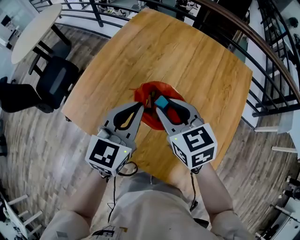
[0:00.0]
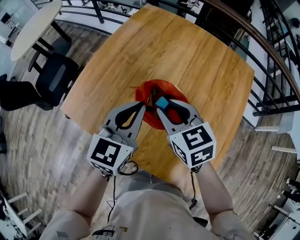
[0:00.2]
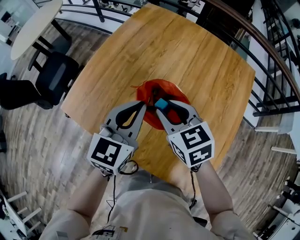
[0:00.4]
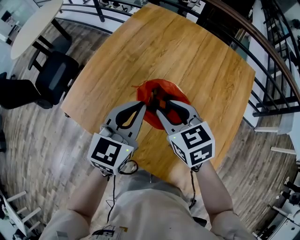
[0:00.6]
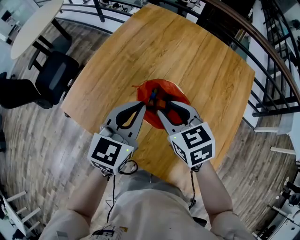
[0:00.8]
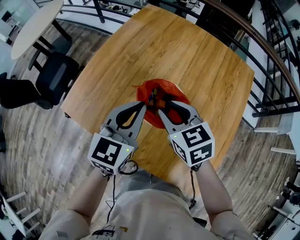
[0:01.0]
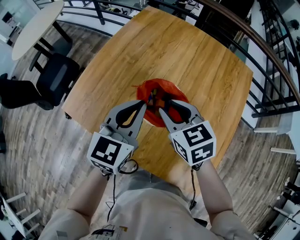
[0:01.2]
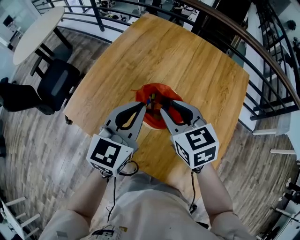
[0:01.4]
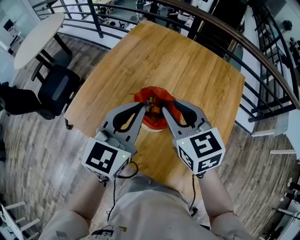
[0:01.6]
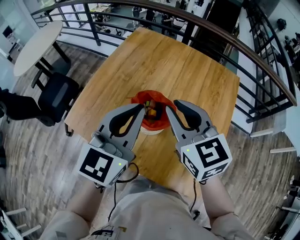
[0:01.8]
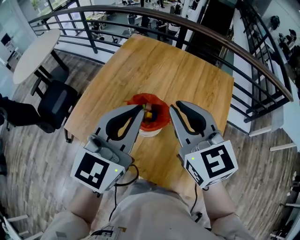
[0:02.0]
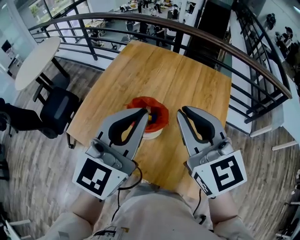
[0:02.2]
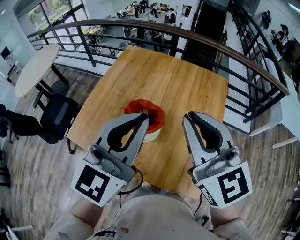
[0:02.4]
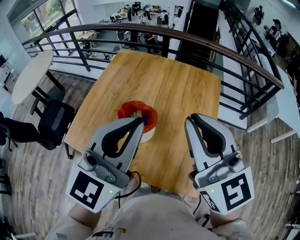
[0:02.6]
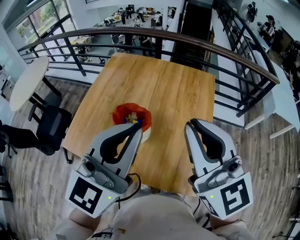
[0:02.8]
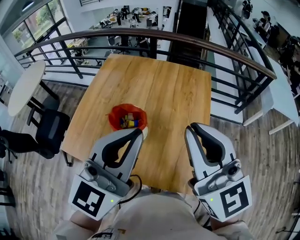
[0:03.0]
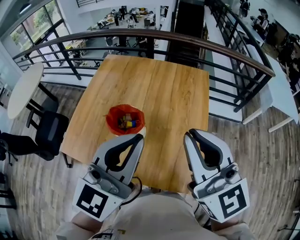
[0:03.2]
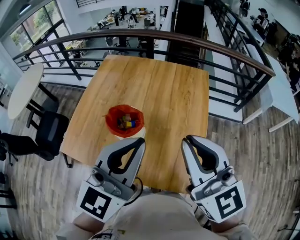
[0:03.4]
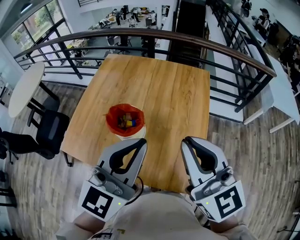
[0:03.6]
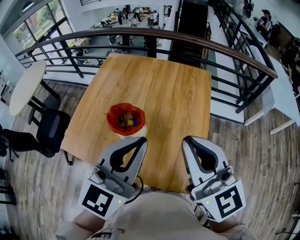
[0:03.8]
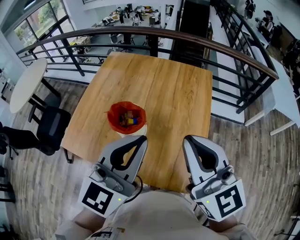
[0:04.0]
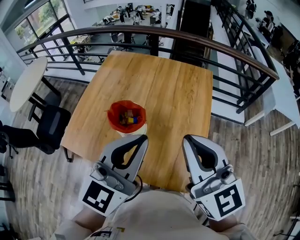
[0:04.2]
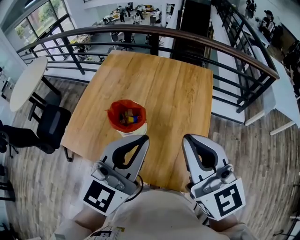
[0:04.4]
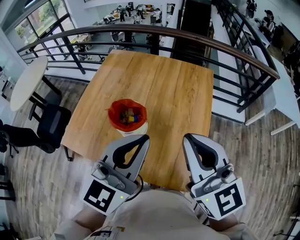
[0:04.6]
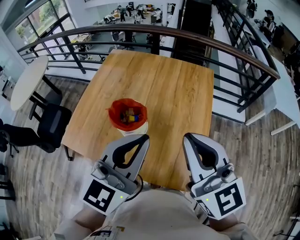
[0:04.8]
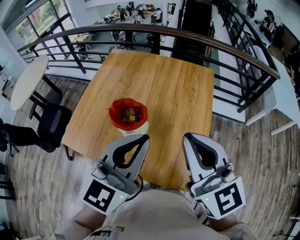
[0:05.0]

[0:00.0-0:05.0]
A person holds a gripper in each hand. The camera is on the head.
0:00.0 to 0:01.6: The grippers both shift upward by some 5 cm.
0:01.6 to 0:03.4: Both grippers travel together to the right, backward and upward, roughly 25 cm. The right gripper turns by about 30 degrees, and closes its fingers, while the left gripper changes its angle by roughly 20 degrees.
0:03.4 to 0:05.0: The grippers make only small movements.

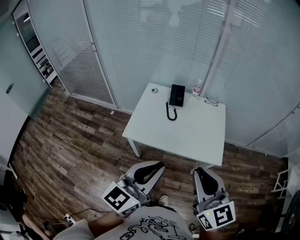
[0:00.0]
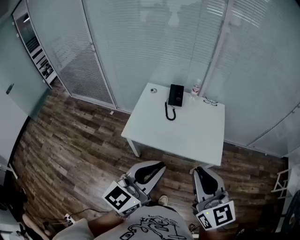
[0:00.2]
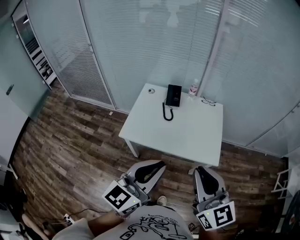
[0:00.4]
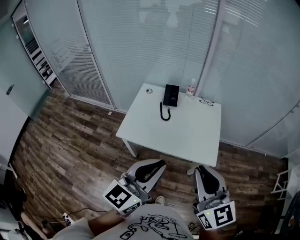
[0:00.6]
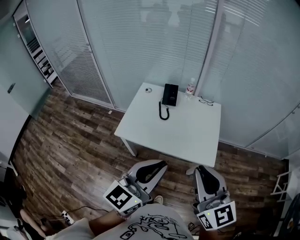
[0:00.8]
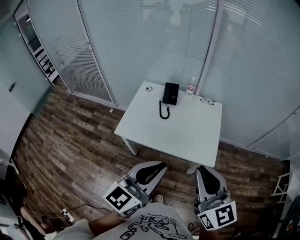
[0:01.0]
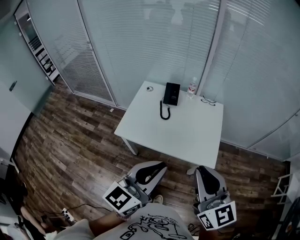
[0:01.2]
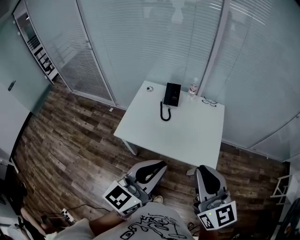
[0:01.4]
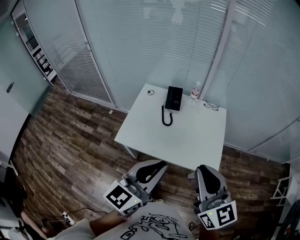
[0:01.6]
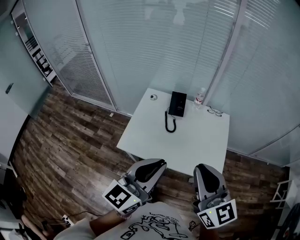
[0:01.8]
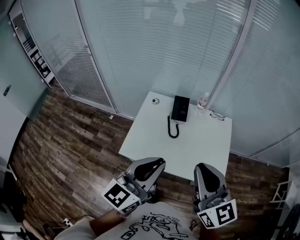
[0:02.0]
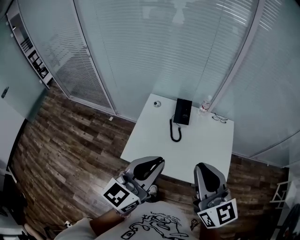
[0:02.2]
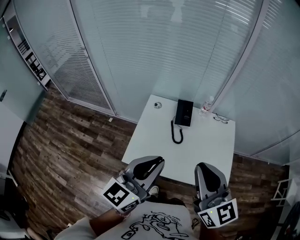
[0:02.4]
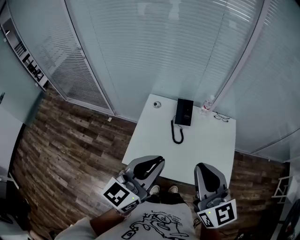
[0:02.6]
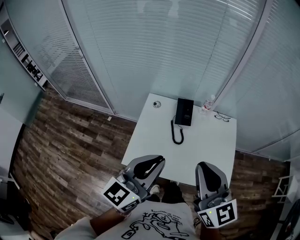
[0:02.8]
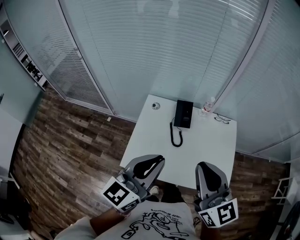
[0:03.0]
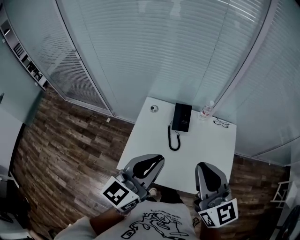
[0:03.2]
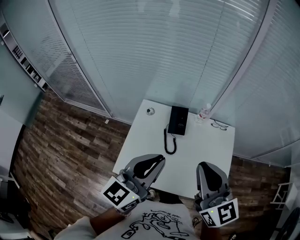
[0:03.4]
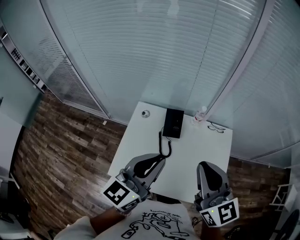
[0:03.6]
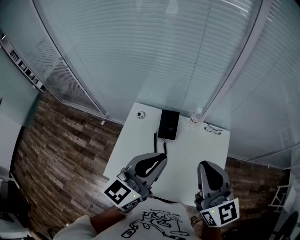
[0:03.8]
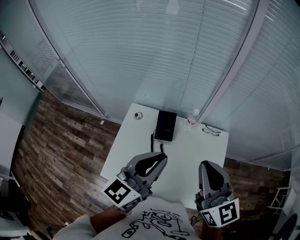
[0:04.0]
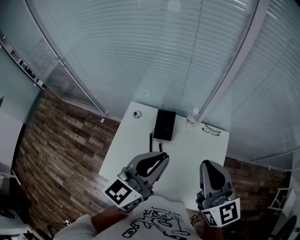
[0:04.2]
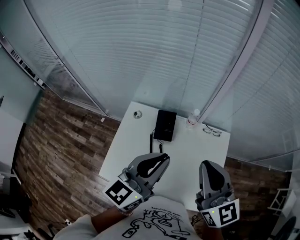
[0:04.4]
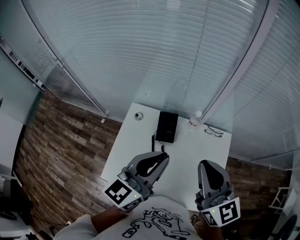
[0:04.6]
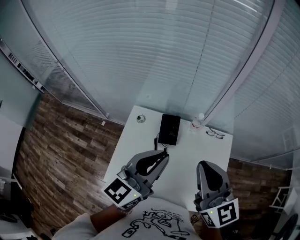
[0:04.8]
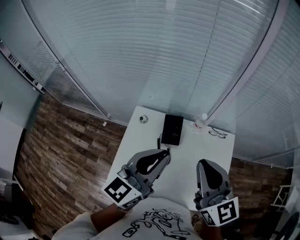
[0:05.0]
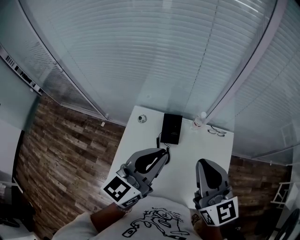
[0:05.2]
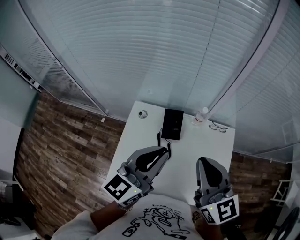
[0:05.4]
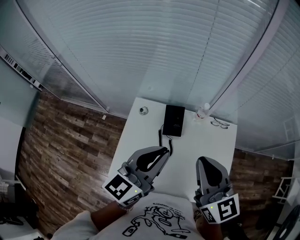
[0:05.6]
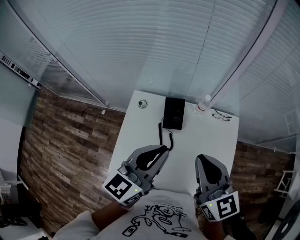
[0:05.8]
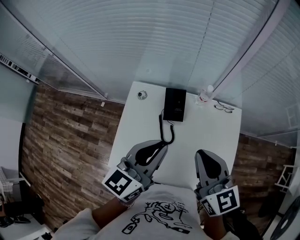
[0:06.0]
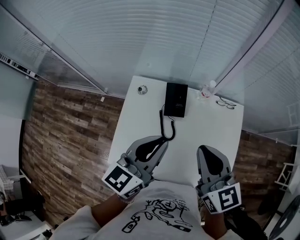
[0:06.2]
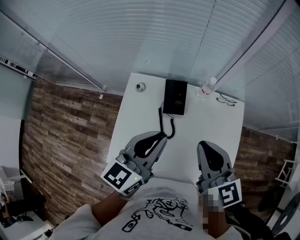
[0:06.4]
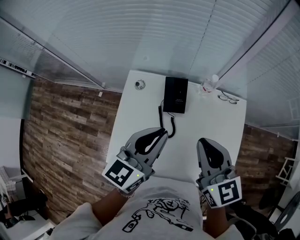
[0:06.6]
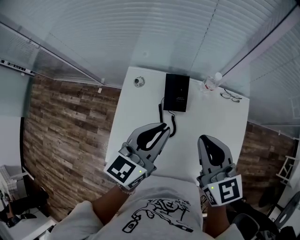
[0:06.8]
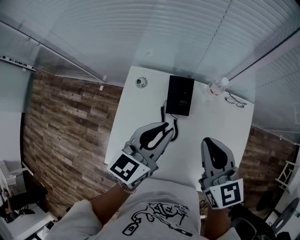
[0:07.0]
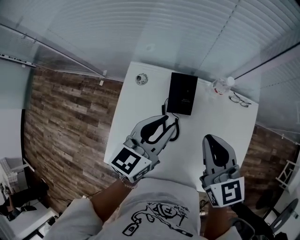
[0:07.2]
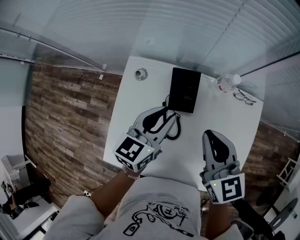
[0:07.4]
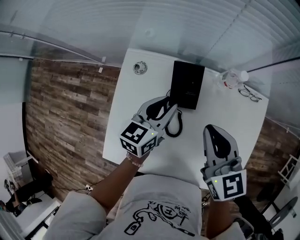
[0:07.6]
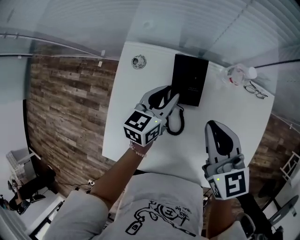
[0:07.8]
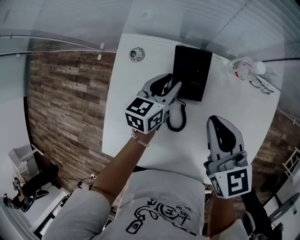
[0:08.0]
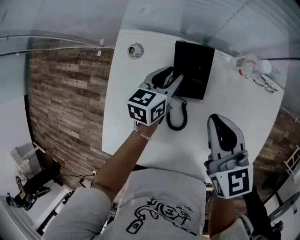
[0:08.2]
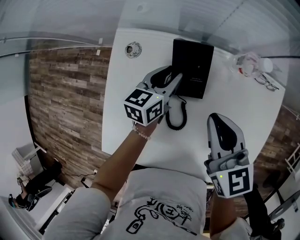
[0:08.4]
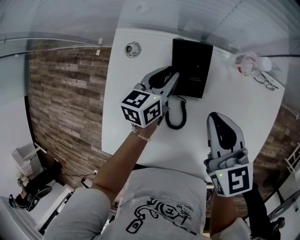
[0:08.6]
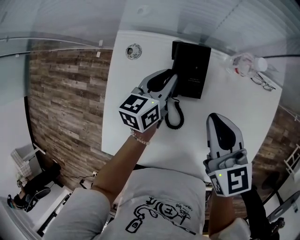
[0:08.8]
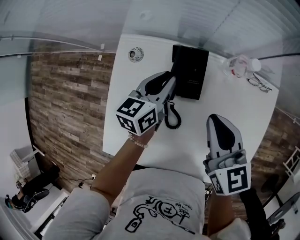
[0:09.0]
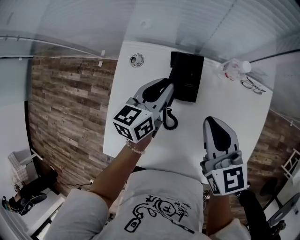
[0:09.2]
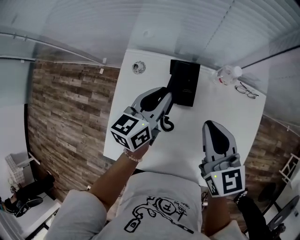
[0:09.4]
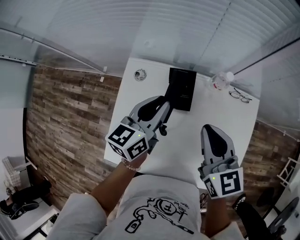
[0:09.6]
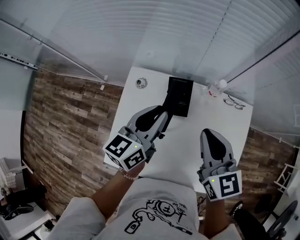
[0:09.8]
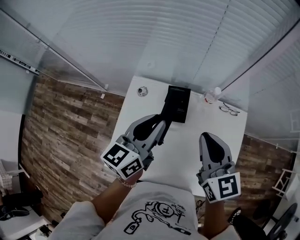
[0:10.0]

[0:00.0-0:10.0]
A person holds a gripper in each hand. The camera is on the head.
0:00.0 to 0:01.4: Both grippers move to the right and forward, about 10 cm.
0:01.4 to 0:02.8: The two grippers go approximately 25 cm forward and to the left.
0:02.8 to 0:04.2: The two grippers go approximately 25 cm forward and to the right.
0:04.2 to 0:05.8: The right gripper heads to the left and downward, covering about 10 cm; the left gripper is displaced to the left by roughly 5 cm.
0:05.8 to 0:07.2: The grippers both shift downward and forward by roughly 20 cm.
0:07.2 to 0:08.6: The right gripper travels downward by roughly 15 cm, while the left gripper goes about 25 cm downward and forward.
0:08.6 to 0:10.0: The left gripper moves upward and backward, some 30 cm, and swivels approximately 20 degrees. The right gripper is displaced upward by roughly 20 cm.

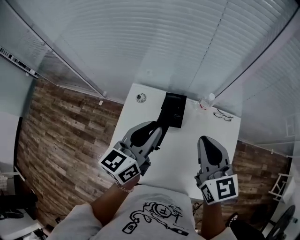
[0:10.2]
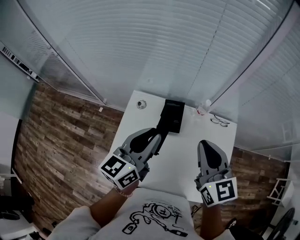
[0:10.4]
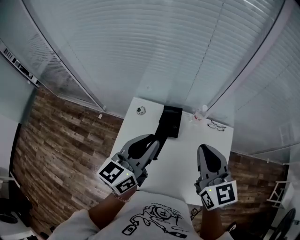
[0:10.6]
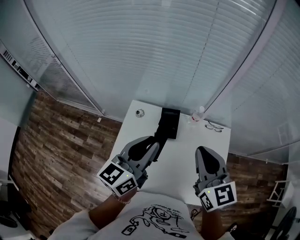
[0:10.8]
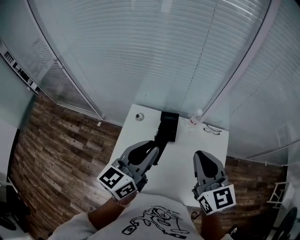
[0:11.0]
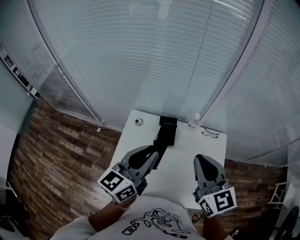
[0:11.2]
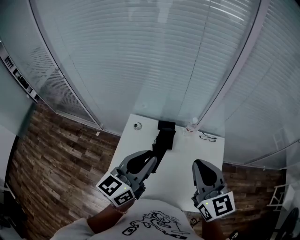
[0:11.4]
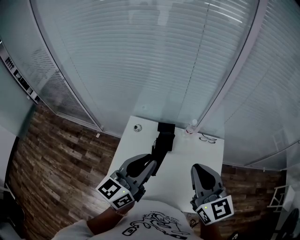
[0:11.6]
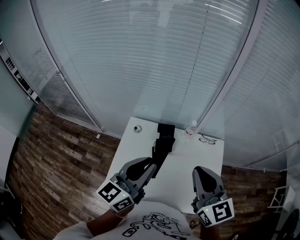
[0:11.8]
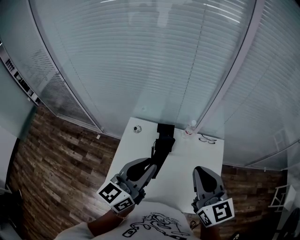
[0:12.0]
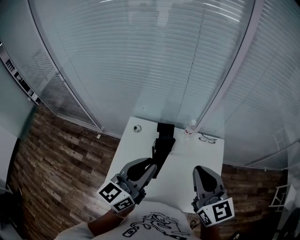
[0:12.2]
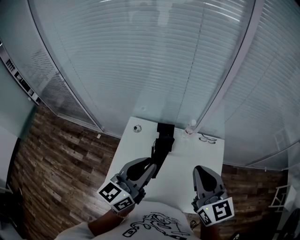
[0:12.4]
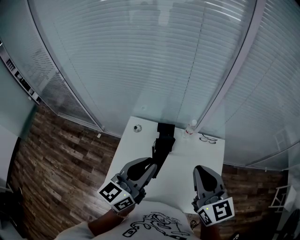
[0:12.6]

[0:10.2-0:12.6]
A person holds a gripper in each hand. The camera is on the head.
0:10.2 to 0:11.4: The grippers both shift upward and backward by roughly 15 cm.
0:11.4 to 0:12.6: The grippers stay close to where they were, moving slightly.

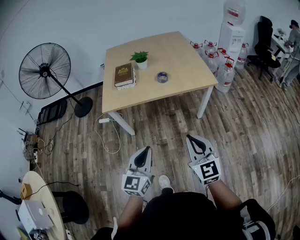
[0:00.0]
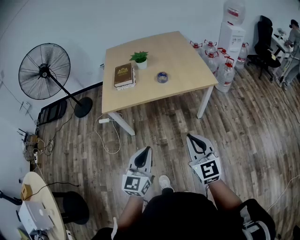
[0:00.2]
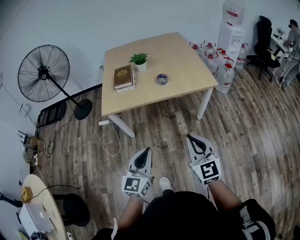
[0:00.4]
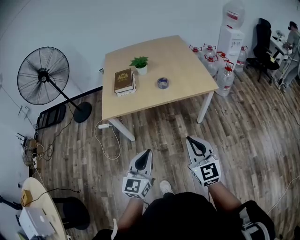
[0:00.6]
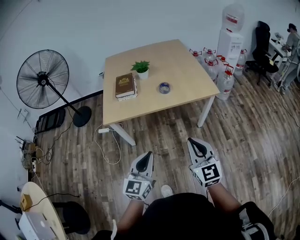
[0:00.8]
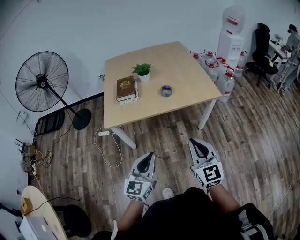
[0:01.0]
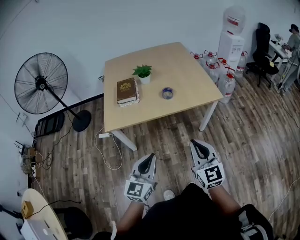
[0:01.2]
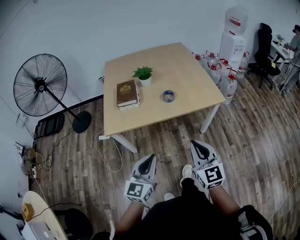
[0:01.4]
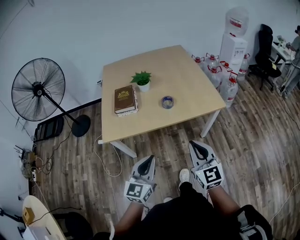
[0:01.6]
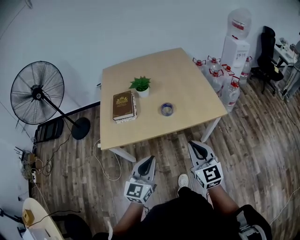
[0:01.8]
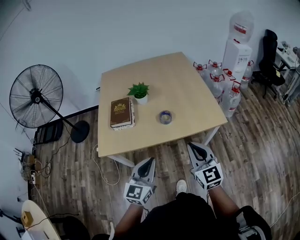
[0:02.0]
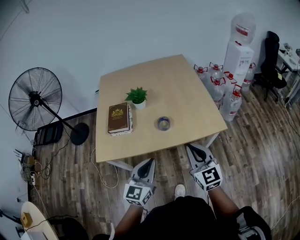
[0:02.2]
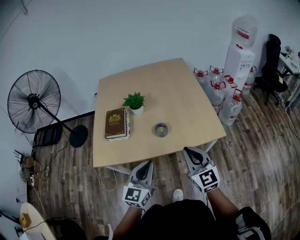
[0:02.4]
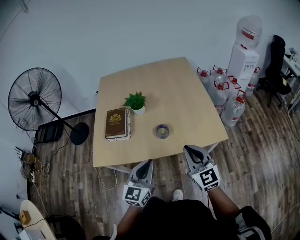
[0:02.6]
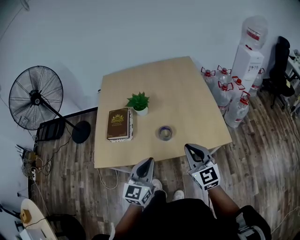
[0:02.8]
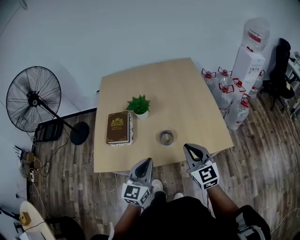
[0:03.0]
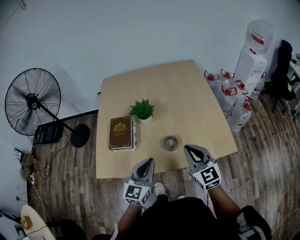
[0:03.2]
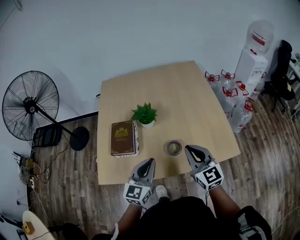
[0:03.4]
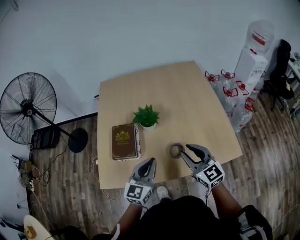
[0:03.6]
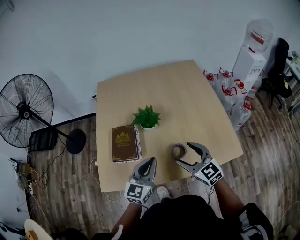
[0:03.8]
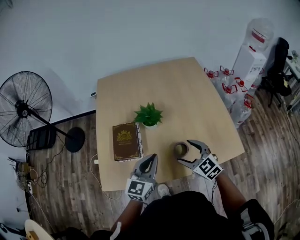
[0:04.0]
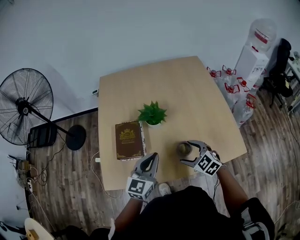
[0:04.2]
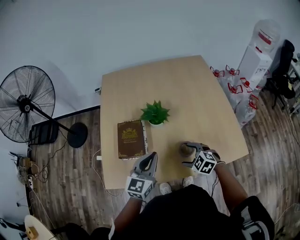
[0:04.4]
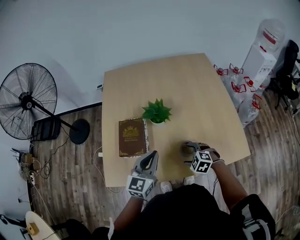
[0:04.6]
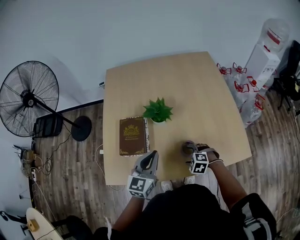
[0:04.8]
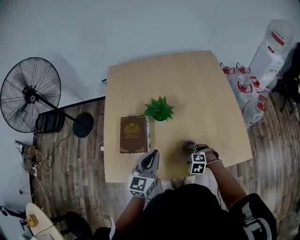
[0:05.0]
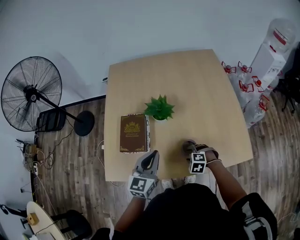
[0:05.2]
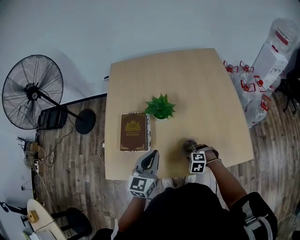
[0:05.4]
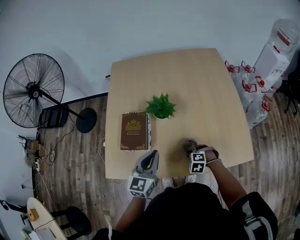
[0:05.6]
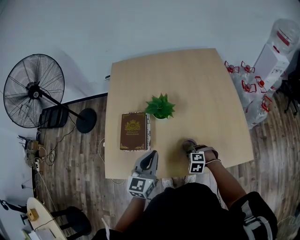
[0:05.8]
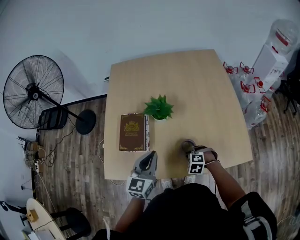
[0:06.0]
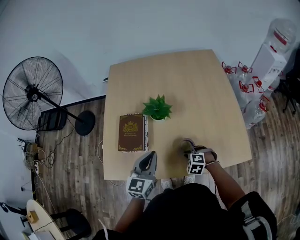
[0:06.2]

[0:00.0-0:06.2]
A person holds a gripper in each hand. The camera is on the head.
0:00.0 to 0:01.6: Both grippers move forward, about 20 cm.
0:01.6 to 0:03.2: Both grippers move forward, some 30 cm.
0:03.2 to 0:04.6: The right gripper travels downward by some 20 cm, tilts its fingers roughly 50 degrees downward, and opens up, while the left gripper heads forward and to the left, covering roughly 15 cm.
0:04.6 to 0:06.2: The right gripper closes.
